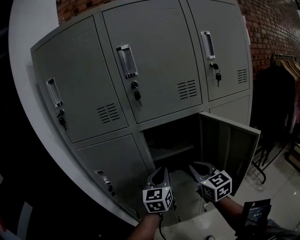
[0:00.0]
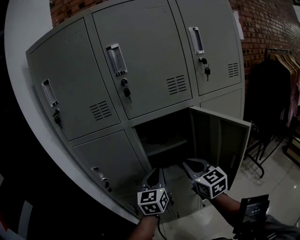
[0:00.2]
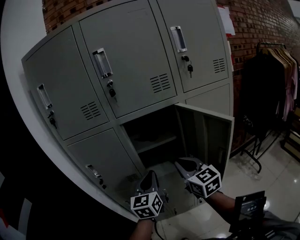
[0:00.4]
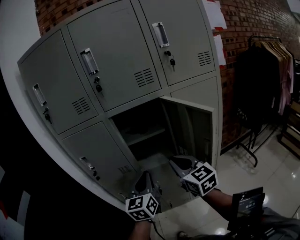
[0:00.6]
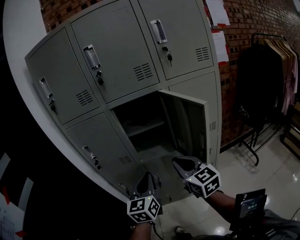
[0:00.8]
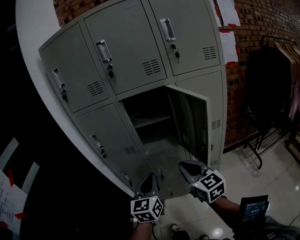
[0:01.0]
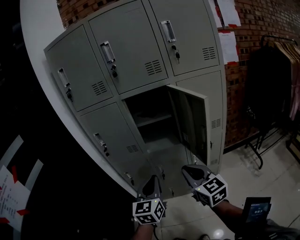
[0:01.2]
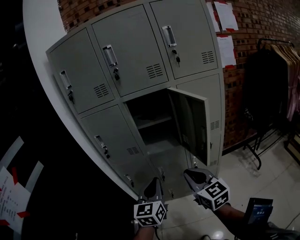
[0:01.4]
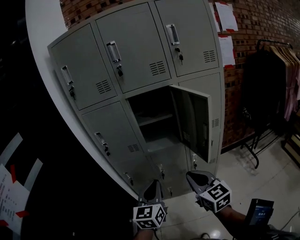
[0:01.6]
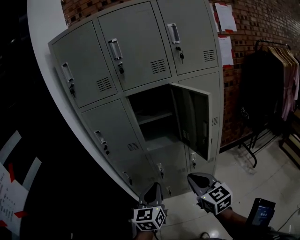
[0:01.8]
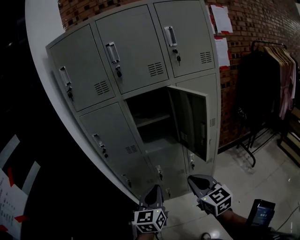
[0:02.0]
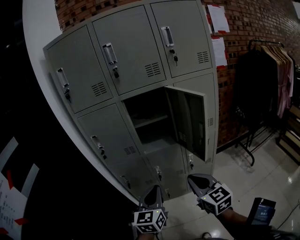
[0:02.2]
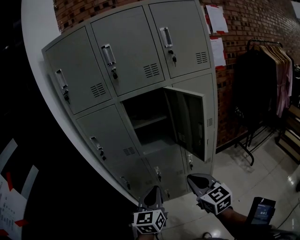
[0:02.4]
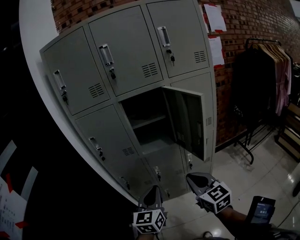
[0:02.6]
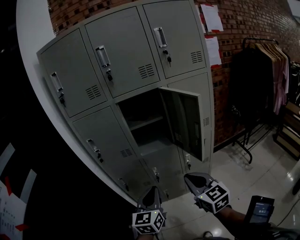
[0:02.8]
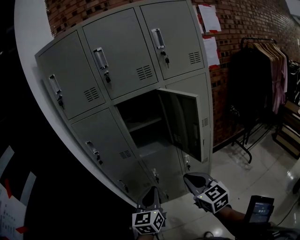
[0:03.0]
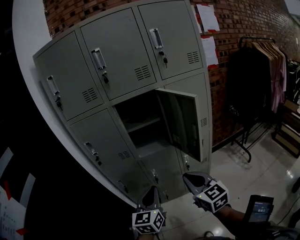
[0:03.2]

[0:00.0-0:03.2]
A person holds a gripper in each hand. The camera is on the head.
0:00.0 to 0:01.6: The grippers both shift backward by roughly 30 cm.
0:01.6 to 0:03.2: The grippers make only small movements.

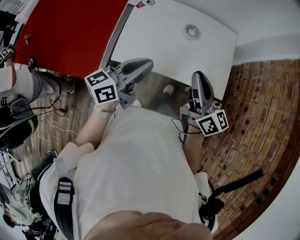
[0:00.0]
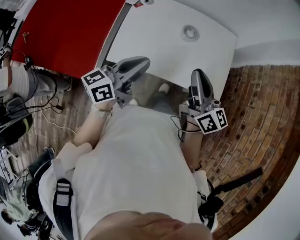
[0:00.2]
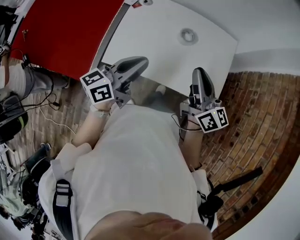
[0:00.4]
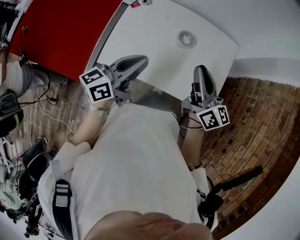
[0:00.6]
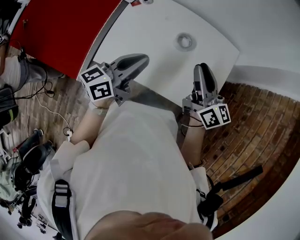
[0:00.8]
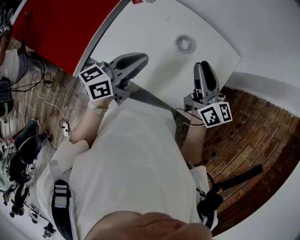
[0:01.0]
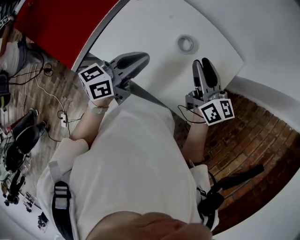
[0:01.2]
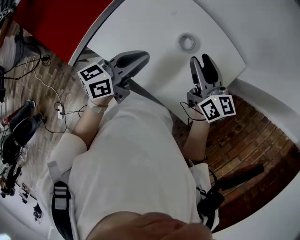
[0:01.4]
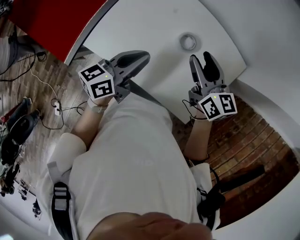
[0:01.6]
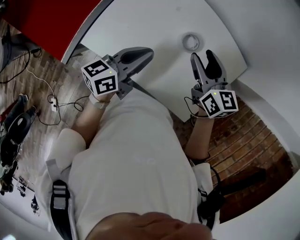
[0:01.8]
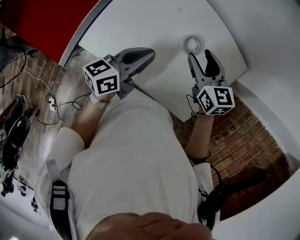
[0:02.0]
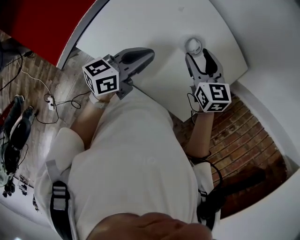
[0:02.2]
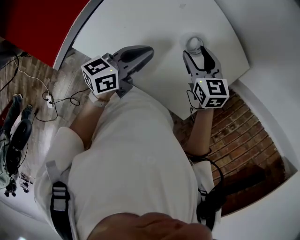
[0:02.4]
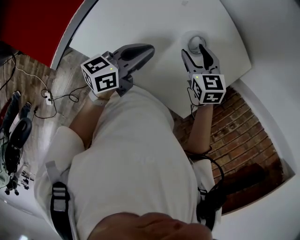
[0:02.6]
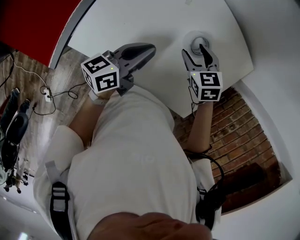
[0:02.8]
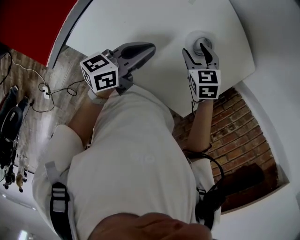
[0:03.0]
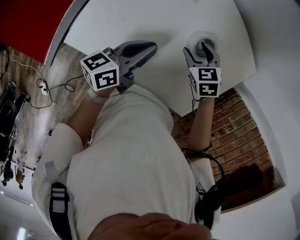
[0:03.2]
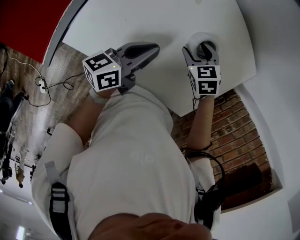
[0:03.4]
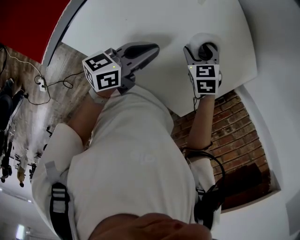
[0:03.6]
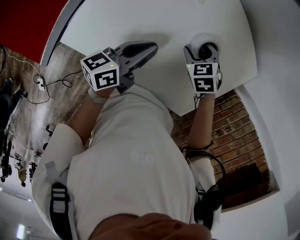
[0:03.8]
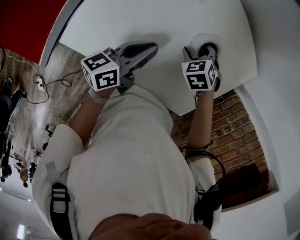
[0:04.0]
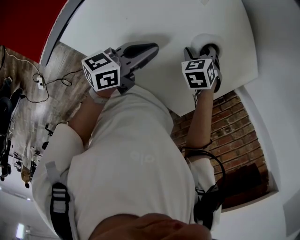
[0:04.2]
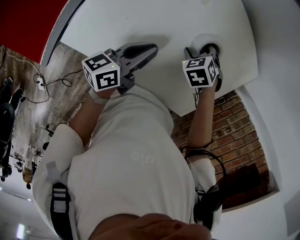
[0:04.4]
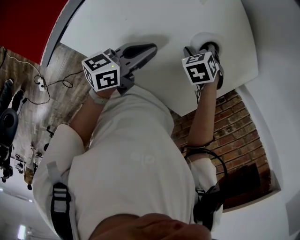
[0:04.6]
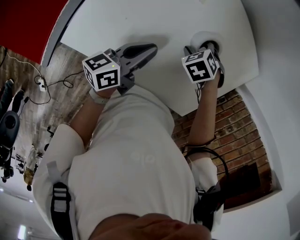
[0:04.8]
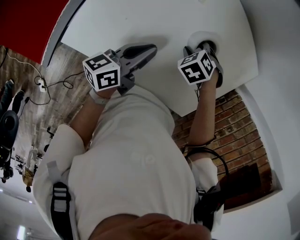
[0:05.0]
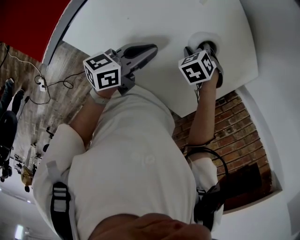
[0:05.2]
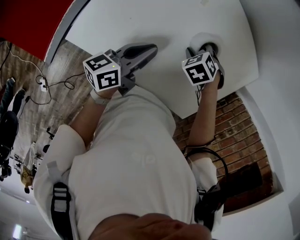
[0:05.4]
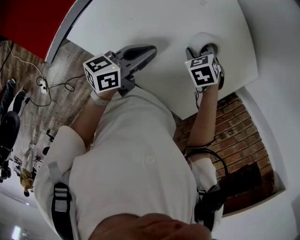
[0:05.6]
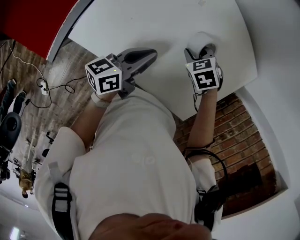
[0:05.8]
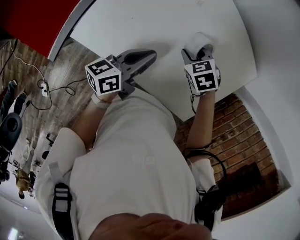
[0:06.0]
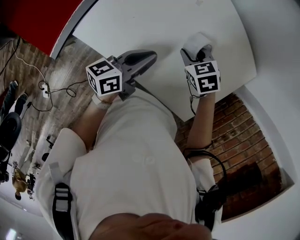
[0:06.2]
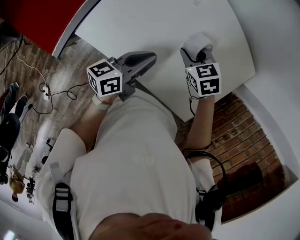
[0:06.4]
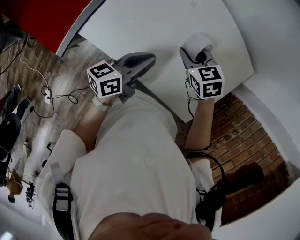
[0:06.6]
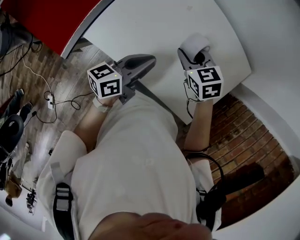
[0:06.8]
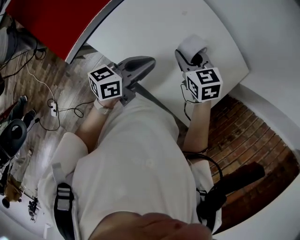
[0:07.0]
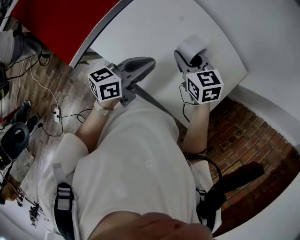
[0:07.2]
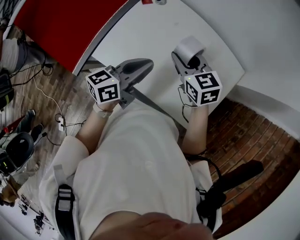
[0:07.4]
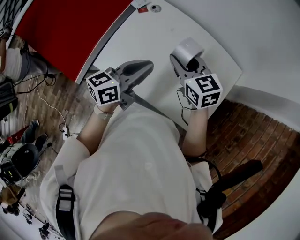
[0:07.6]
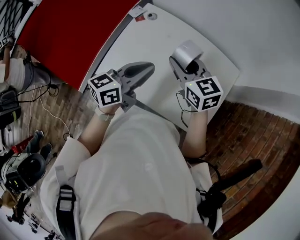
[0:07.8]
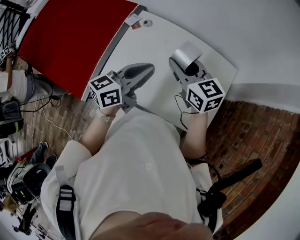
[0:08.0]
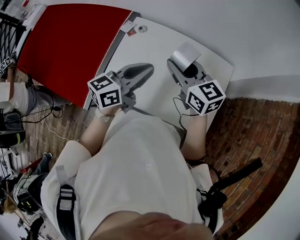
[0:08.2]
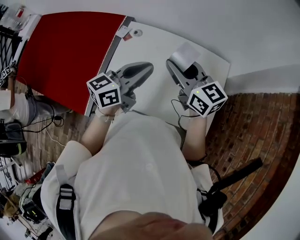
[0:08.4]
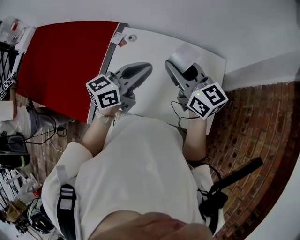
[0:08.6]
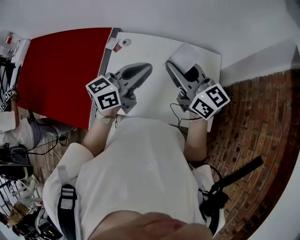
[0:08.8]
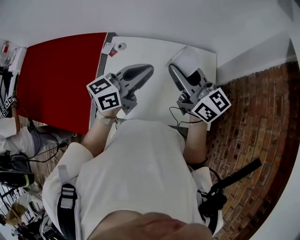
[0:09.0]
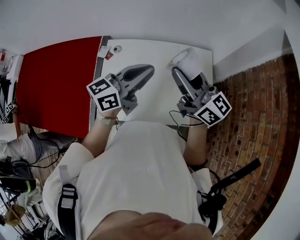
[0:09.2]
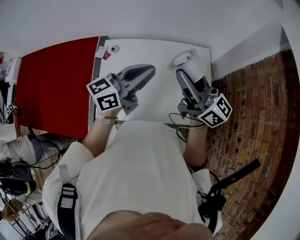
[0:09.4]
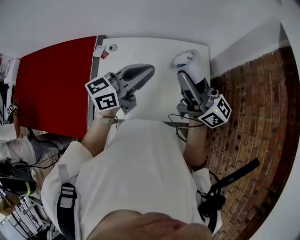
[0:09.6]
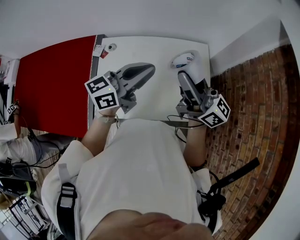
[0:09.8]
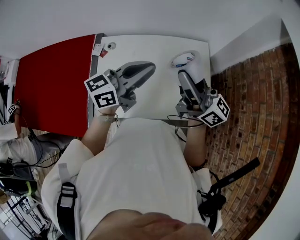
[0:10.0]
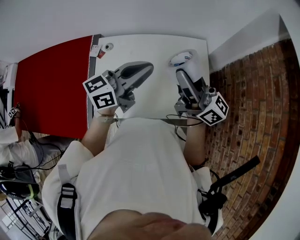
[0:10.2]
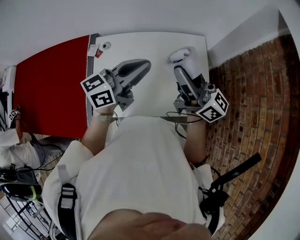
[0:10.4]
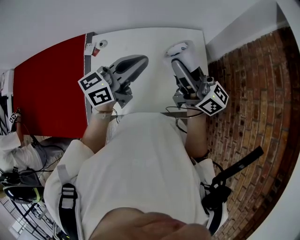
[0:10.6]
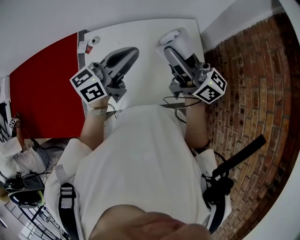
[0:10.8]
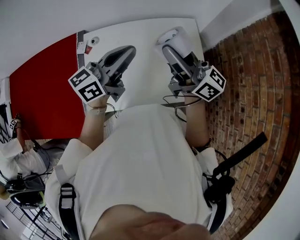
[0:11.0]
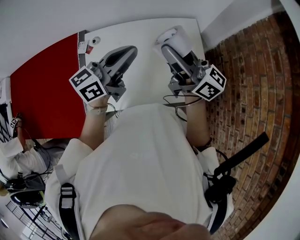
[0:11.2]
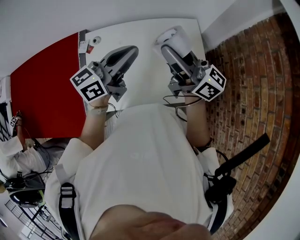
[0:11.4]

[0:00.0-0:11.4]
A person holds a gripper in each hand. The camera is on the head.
0:00.0 to 0:01.4: The grippers both shift forward by some 25 cm. The left gripper rotates some 20 degrees. Meanwhile the right gripper rotates some 30 degrees, and opens up.
0:01.4 to 0:02.8: The left gripper goes approximately 20 cm downward and forward, while the right gripper moves downward, approximately 25 cm, and tilts its fingers roughly 50 degrees downward.
0:02.8 to 0:04.2: The two grippers go about 10 cm downward. The right gripper rotates approximately 30 degrees.
0:04.2 to 0:05.6: The right gripper closes its fingers.
0:05.6 to 0:07.2: Both grippers travel together upward, roughly 20 cm. The right gripper tilts its fingers some 50 degrees upward.
0:07.2 to 0:08.6: The two grippers go some 20 cm upward. The left gripper changes its angle by some 30 degrees; the right gripper tilts its fingers about 40 degrees upward.
0:08.6 to 0:10.0: Both grippers travel together to the right, some 10 cm. The right gripper changes its angle by approximately 30 degrees. Meanwhile the left gripper rotates approximately 20 degrees.
0:10.0 to 0:11.4: There are only small adjustments of the grippers.

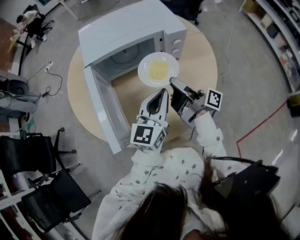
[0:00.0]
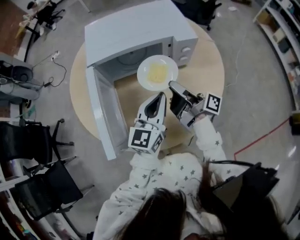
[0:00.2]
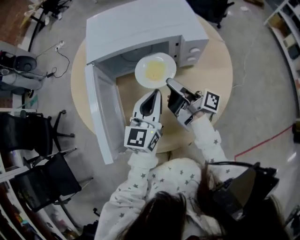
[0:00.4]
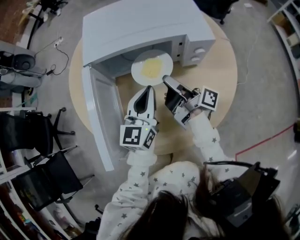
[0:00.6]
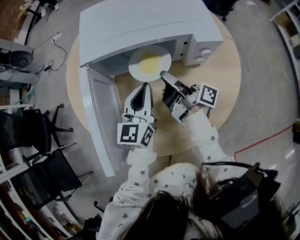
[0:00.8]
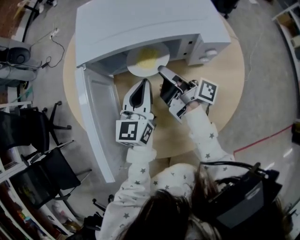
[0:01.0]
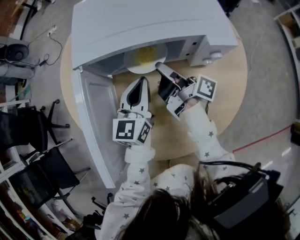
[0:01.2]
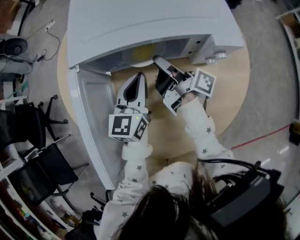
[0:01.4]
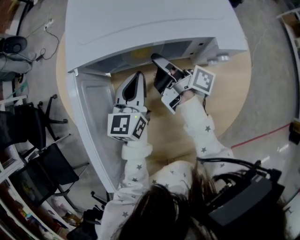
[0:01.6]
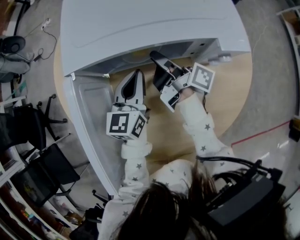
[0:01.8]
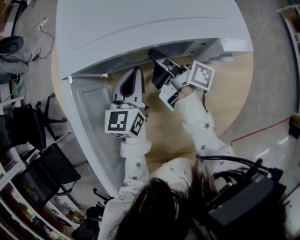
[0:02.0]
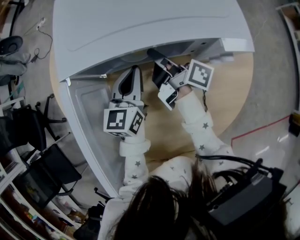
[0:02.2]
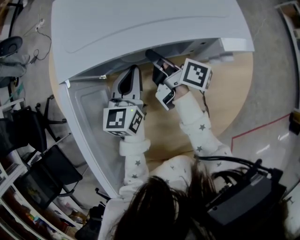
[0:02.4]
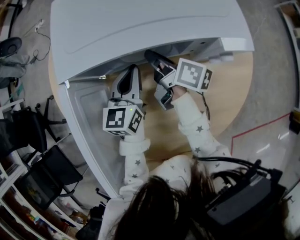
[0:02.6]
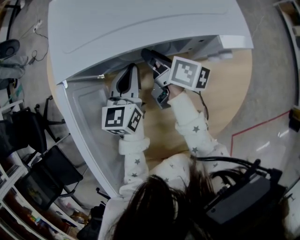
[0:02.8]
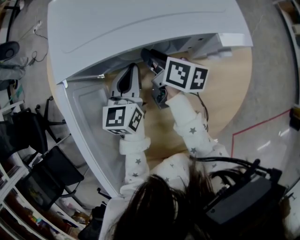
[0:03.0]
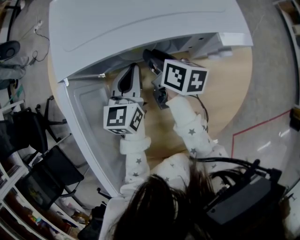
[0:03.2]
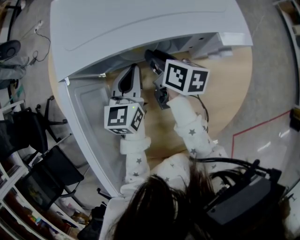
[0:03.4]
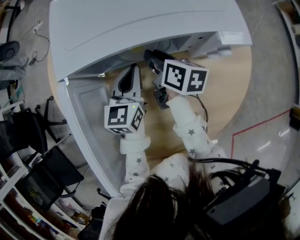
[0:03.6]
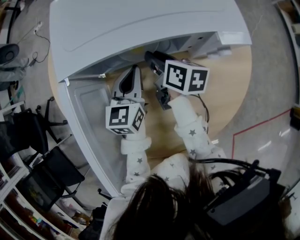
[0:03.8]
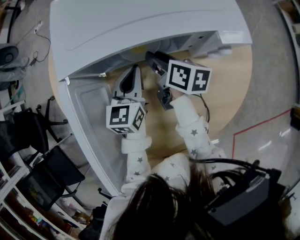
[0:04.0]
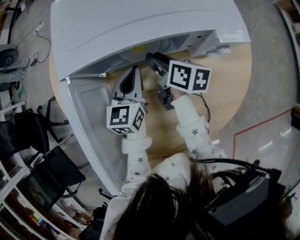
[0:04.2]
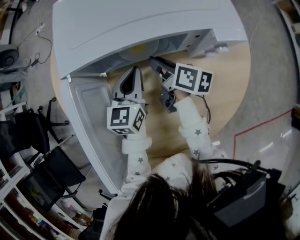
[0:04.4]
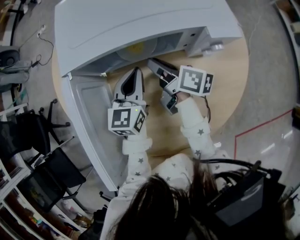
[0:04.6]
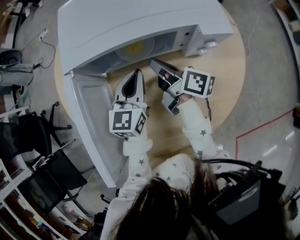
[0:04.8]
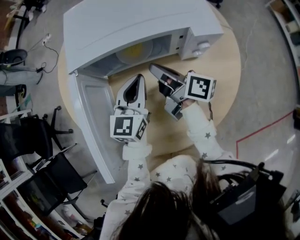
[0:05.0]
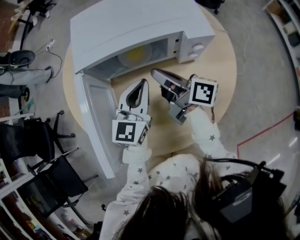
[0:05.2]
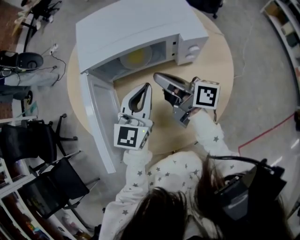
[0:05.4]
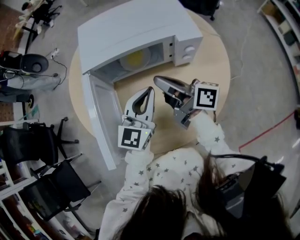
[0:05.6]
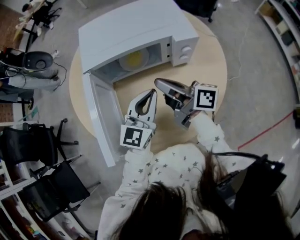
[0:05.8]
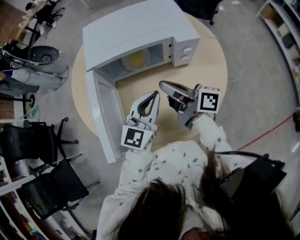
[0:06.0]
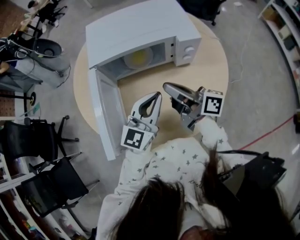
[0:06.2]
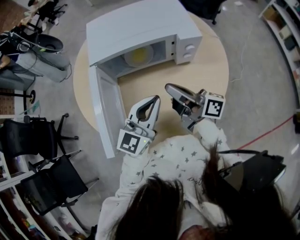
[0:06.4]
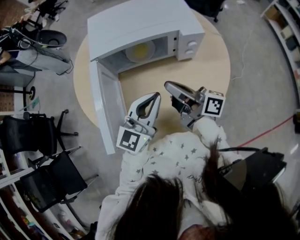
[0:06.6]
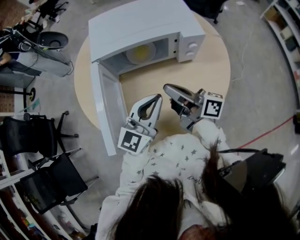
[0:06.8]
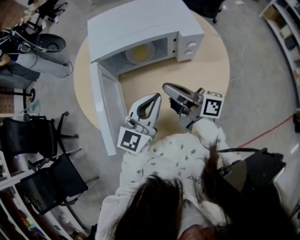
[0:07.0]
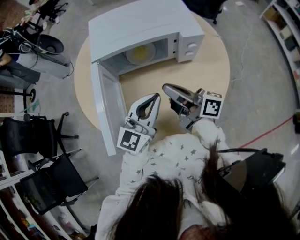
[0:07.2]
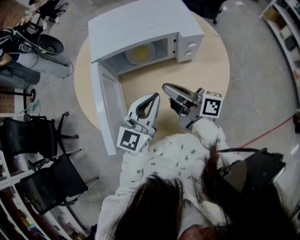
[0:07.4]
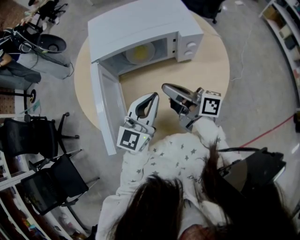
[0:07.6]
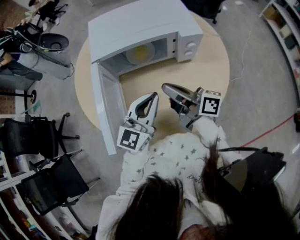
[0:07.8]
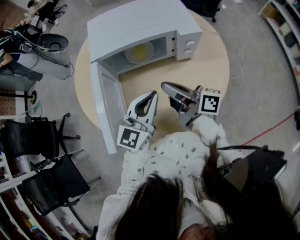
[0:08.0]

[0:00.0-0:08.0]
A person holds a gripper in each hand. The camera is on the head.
0:00.0 to 0:01.6: The right gripper swings forward and backward, approximately 10 cm each way, with 3 reversals, while the left gripper travels downward by approximately 10 cm.
0:01.6 to 0:03.2: The right gripper turns by about 40 degrees.
0:03.2 to 0:04.8: The right gripper changes place by roughly 5 cm, and swivels approximately 20 degrees.
0:04.8 to 0:06.4: Both grippers move backward and upward, some 20 cm. The right gripper rotates some 20 degrees. Meanwhile the left gripper swivels approximately 20 degrees.
0:06.4 to 0:08.0: The grippers stay close to where they were, moving slightly.

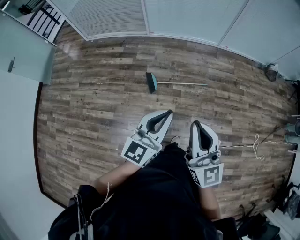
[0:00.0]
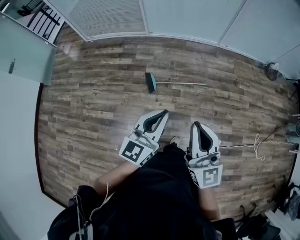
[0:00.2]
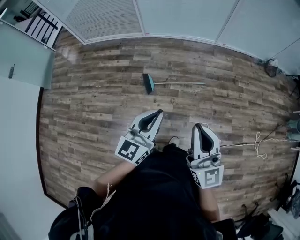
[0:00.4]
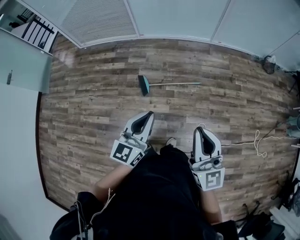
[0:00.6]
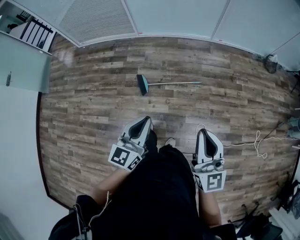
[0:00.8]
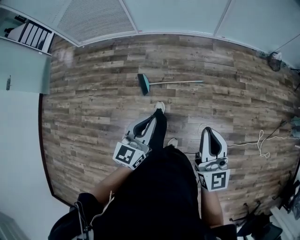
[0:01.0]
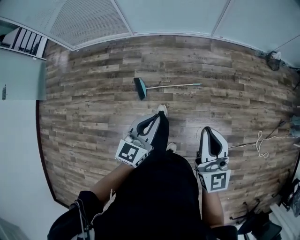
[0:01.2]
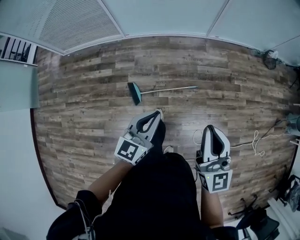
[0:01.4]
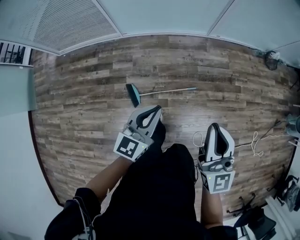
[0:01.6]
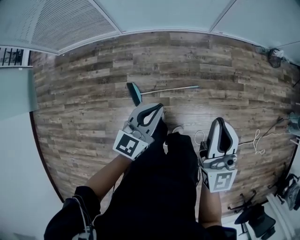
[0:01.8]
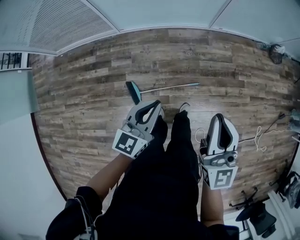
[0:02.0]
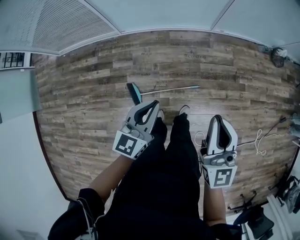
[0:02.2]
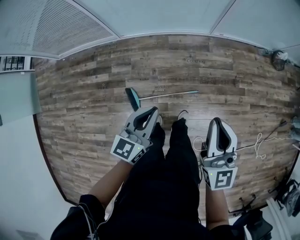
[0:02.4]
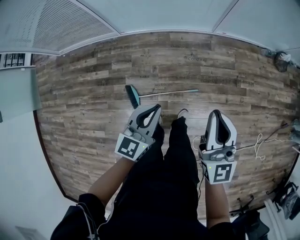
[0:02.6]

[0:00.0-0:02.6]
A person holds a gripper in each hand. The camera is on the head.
0:00.0 to 0:01.2: The left gripper is displaced forward, downward and to the right by approximately 20 cm; the right gripper shifts approximately 25 cm forward and to the right.
0:01.2 to 0:02.6: Both grippers travel together forward, about 35 cm.
